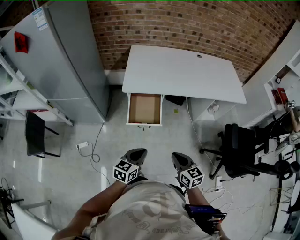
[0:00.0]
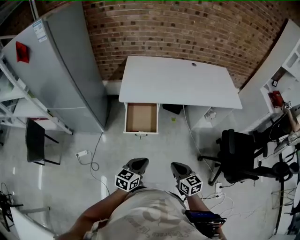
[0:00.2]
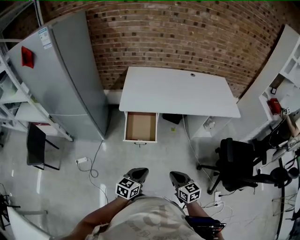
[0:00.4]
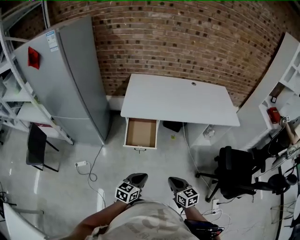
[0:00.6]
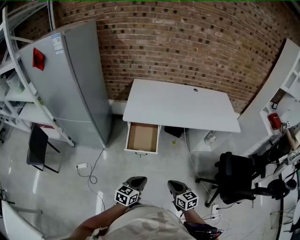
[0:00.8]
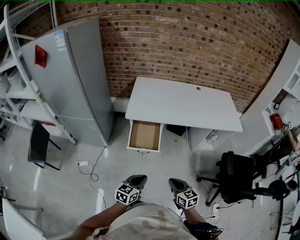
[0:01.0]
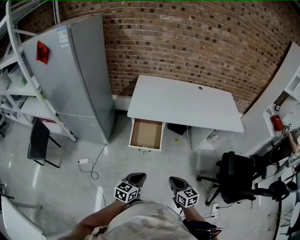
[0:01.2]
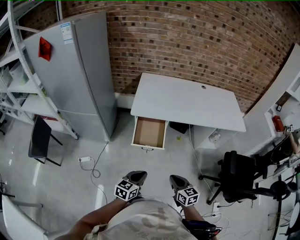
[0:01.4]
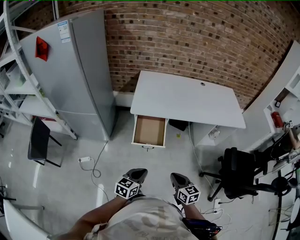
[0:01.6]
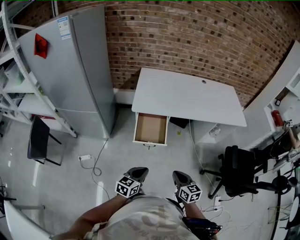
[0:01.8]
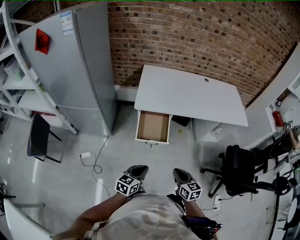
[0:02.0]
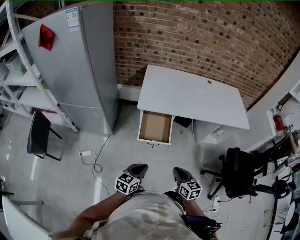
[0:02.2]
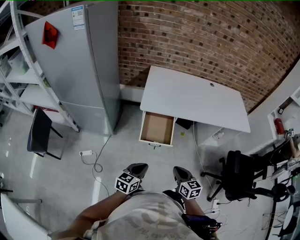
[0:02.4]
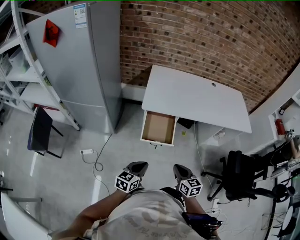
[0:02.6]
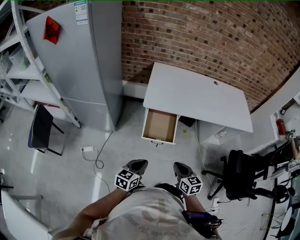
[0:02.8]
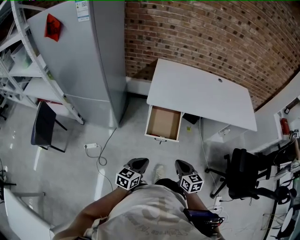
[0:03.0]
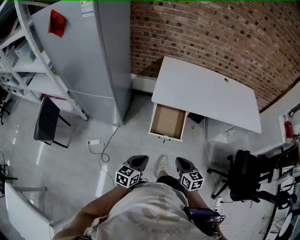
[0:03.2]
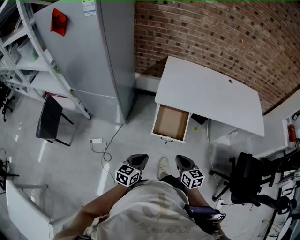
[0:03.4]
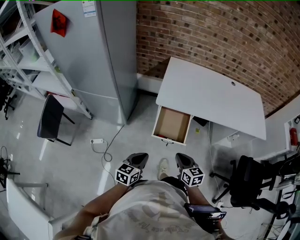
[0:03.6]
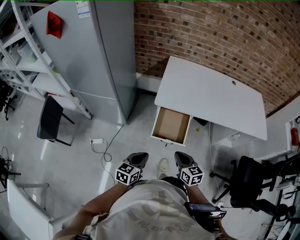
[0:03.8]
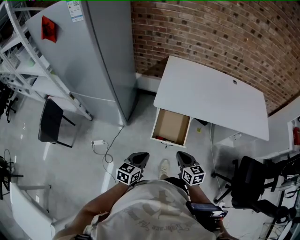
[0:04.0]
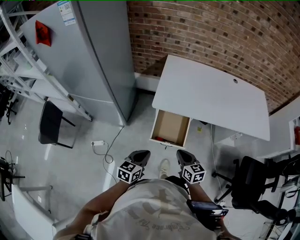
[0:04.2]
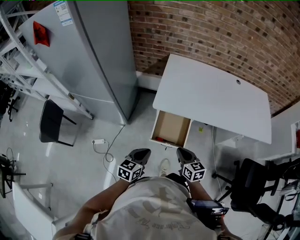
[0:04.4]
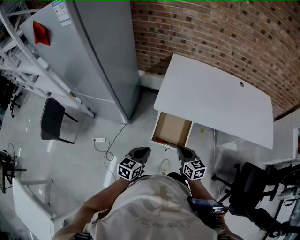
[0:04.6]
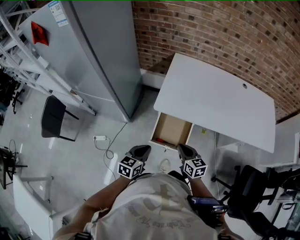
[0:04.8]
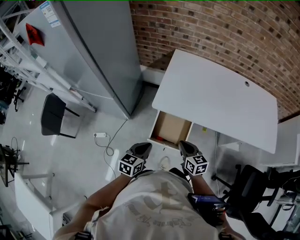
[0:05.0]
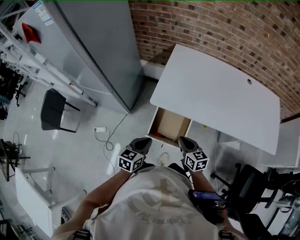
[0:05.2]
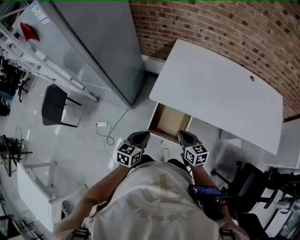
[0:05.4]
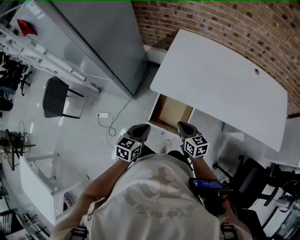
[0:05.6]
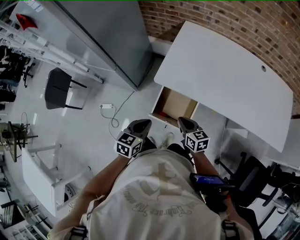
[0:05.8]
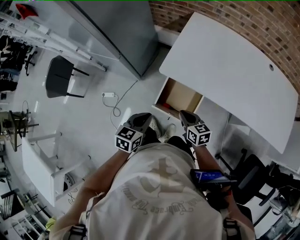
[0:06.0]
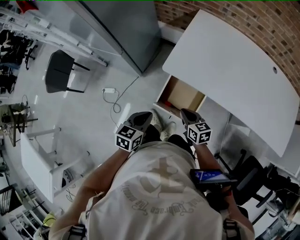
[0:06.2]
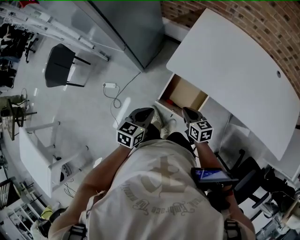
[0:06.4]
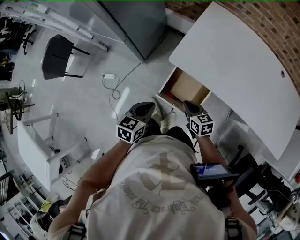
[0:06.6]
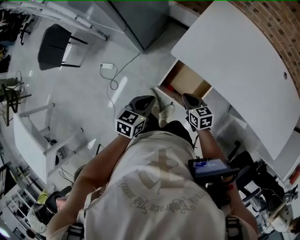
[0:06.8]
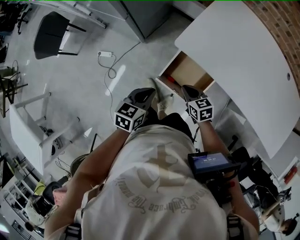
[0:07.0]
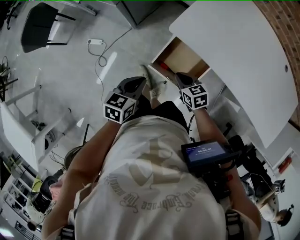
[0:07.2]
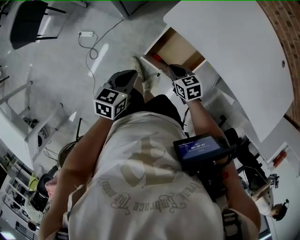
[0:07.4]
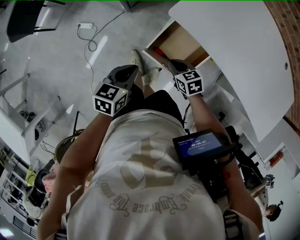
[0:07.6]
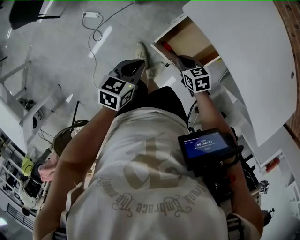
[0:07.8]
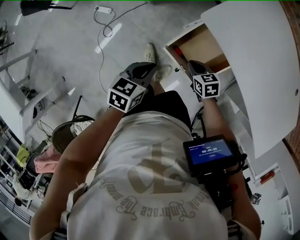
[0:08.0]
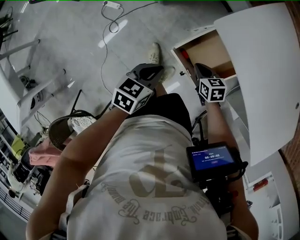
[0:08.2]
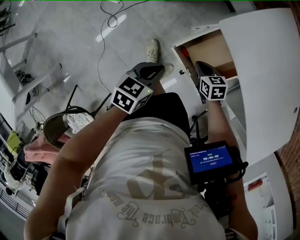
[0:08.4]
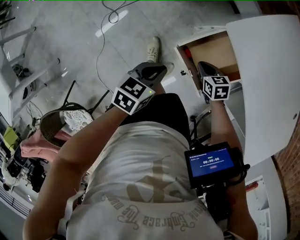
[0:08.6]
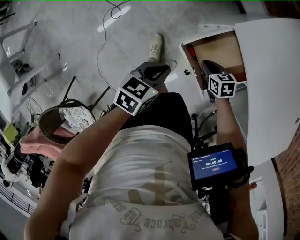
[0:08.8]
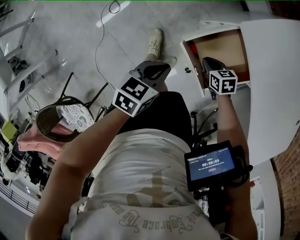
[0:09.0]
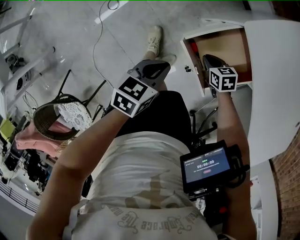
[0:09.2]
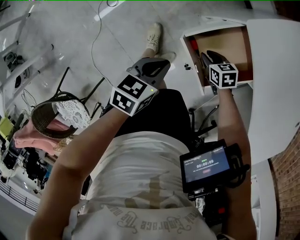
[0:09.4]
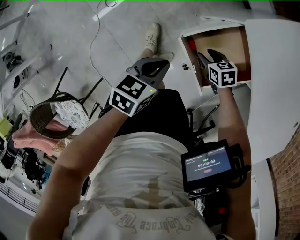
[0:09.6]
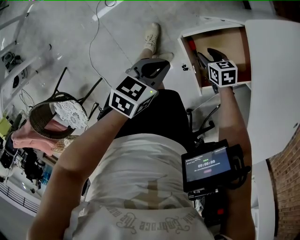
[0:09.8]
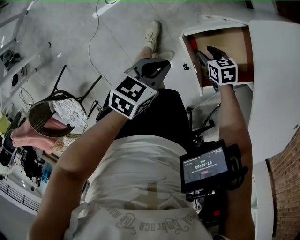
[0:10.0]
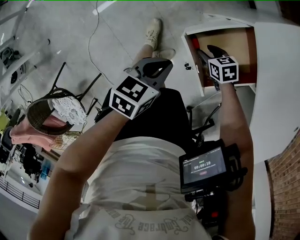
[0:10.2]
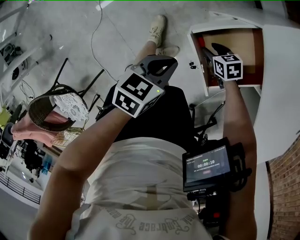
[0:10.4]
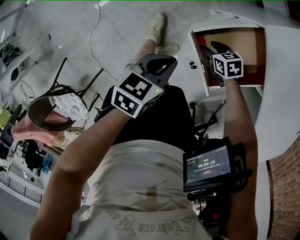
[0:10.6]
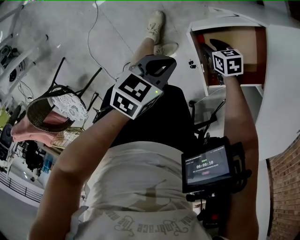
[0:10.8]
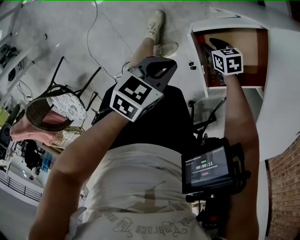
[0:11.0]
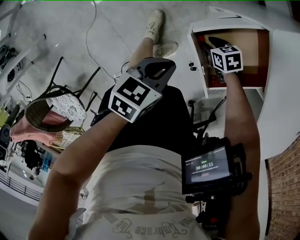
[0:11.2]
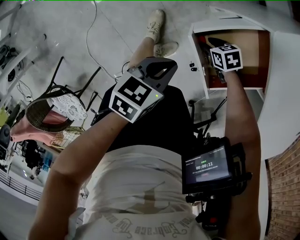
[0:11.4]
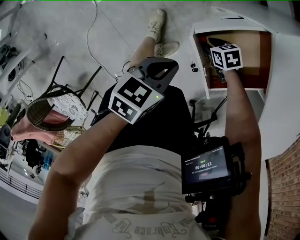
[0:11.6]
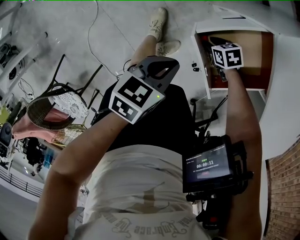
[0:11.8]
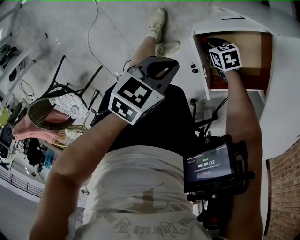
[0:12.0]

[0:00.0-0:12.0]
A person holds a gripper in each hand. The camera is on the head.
0:00.0 to 0:01.6: The left gripper moves roughly 5 cm to the right and comes back.
0:01.6 to 0:03.0: The right gripper shifts roughly 10 cm to the left and forward. The left gripper heads to the left, covering approximately 10 cm.
0:03.0 to 0:04.4: Both grippers move forward, approximately 15 cm.
0:04.4 to 0:06.0: The right gripper moves forward and downward, some 15 cm, while the left gripper heads forward, covering roughly 5 cm.
0:06.0 to 0:07.6: The two grippers go some 15 cm downward and to the left. The right gripper swivels roughly 30 degrees.
0:07.6 to 0:09.0: Both grippers move downward, about 10 cm.
0:09.0 to 0:10.4: The right gripper is displaced downward by roughly 5 cm, and opens.
0:10.4 to 0:12.0: The right gripper is displaced downward by some 5 cm, and closes up.

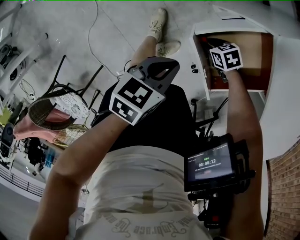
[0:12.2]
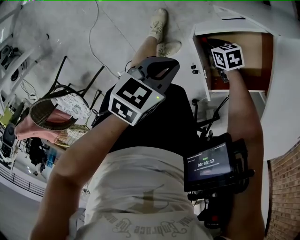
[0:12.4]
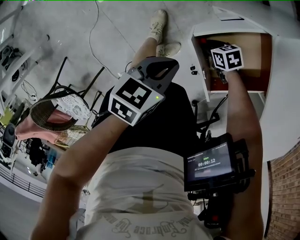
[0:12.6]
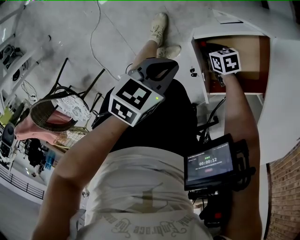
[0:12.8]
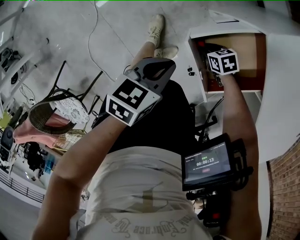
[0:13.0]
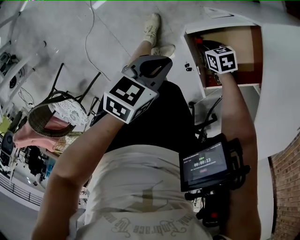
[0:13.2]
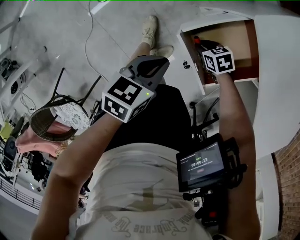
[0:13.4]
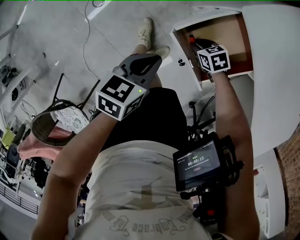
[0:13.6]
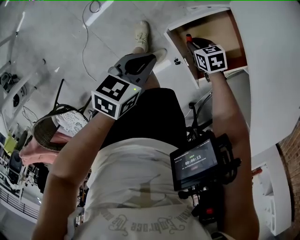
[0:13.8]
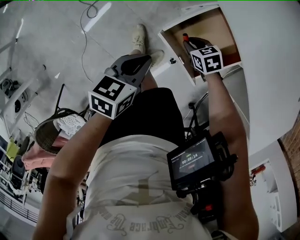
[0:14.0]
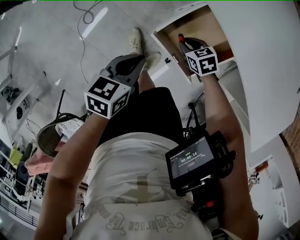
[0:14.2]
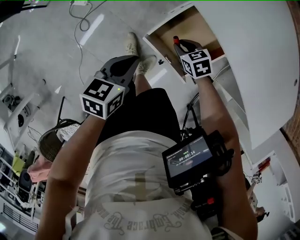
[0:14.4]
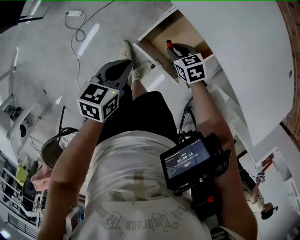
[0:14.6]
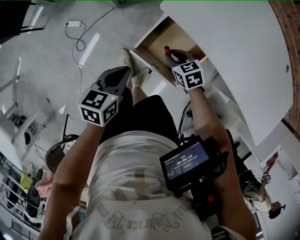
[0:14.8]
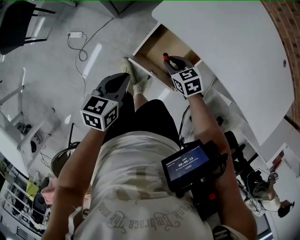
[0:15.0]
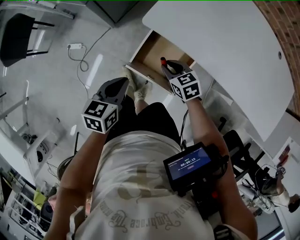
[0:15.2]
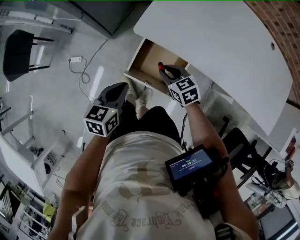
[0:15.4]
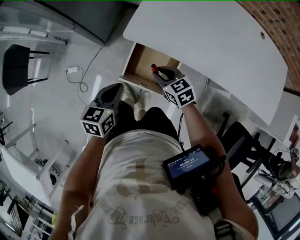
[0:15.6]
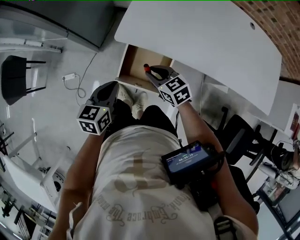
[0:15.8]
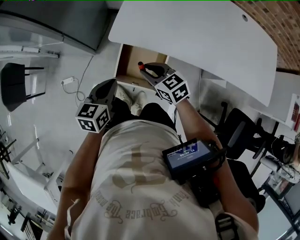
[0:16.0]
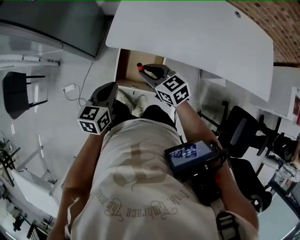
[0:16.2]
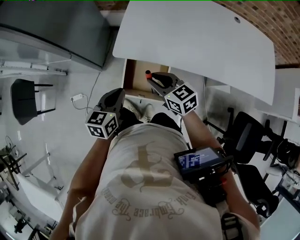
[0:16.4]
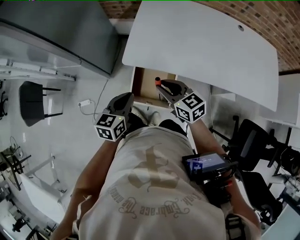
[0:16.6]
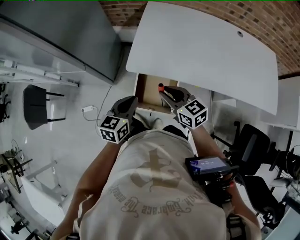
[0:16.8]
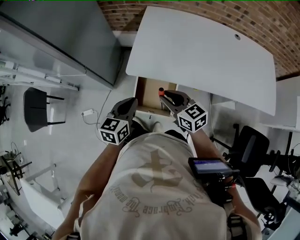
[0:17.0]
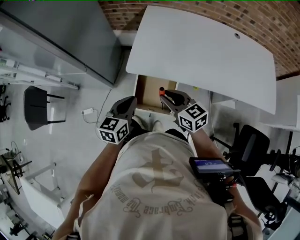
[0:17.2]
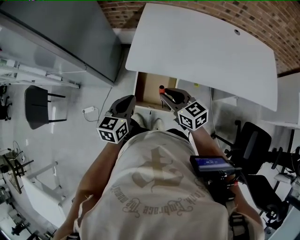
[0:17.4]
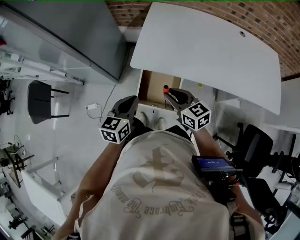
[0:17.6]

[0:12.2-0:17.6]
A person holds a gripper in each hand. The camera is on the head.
0:12.2 to 0:13.6: The grippers both shift upward by roughly 10 cm.
0:13.6 to 0:15.0: The left gripper is displaced upward by some 10 cm. Meanwhile the right gripper heads upward, covering some 15 cm, and swivels about 30 degrees.
0:15.0 to 0:16.2: The right gripper moves upward, some 20 cm, and rotates approximately 30 degrees. The left gripper travels upward and to the right by approximately 10 cm.
0:16.2 to 0:17.6: The right gripper heads upward and backward, covering some 10 cm. The left gripper goes some 5 cm upward.

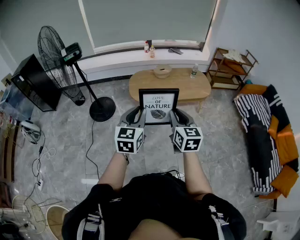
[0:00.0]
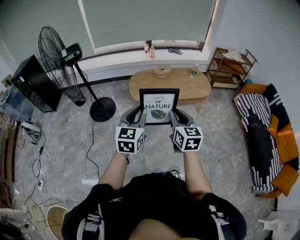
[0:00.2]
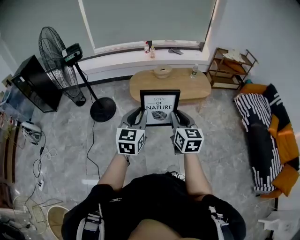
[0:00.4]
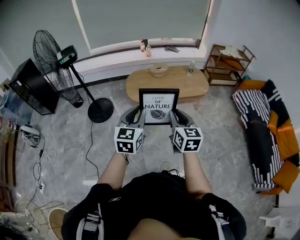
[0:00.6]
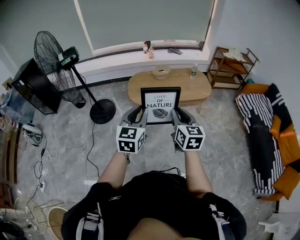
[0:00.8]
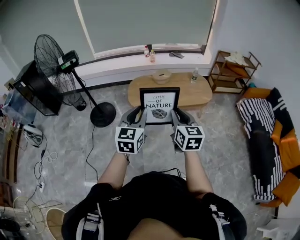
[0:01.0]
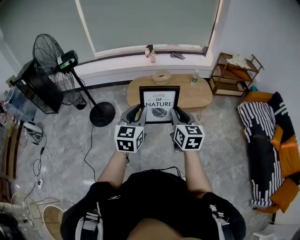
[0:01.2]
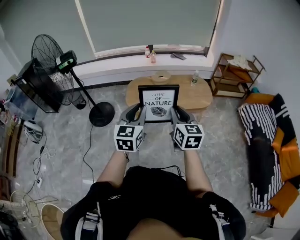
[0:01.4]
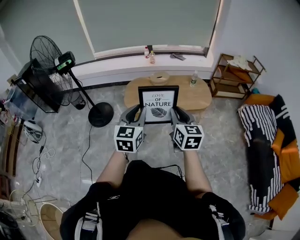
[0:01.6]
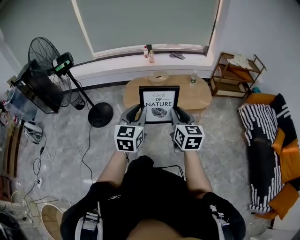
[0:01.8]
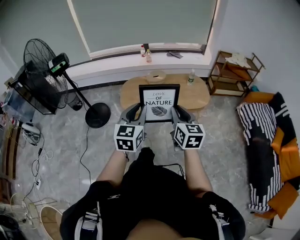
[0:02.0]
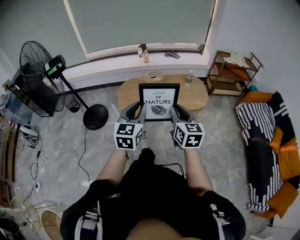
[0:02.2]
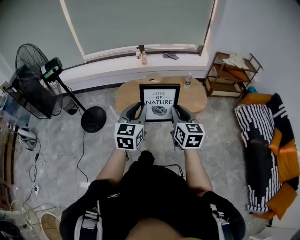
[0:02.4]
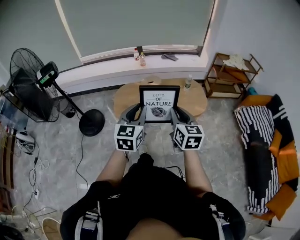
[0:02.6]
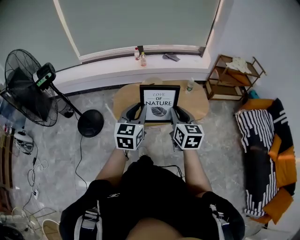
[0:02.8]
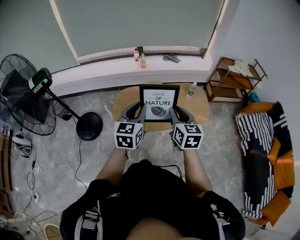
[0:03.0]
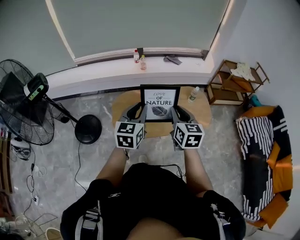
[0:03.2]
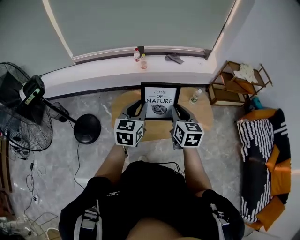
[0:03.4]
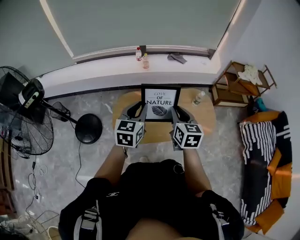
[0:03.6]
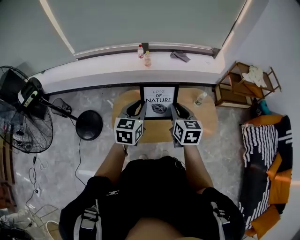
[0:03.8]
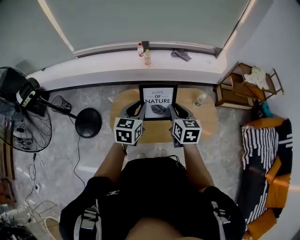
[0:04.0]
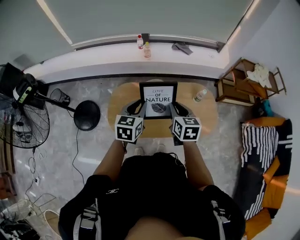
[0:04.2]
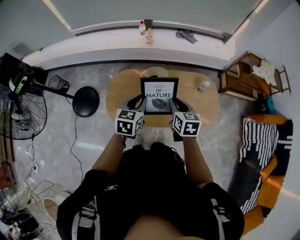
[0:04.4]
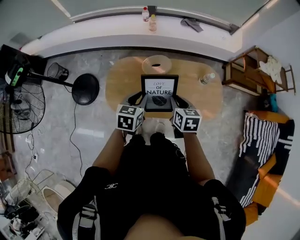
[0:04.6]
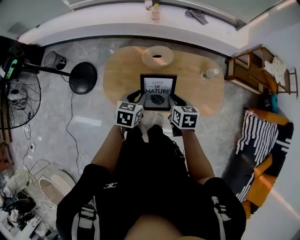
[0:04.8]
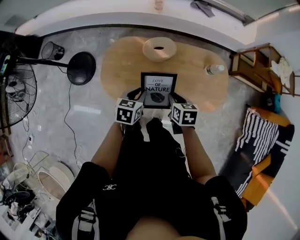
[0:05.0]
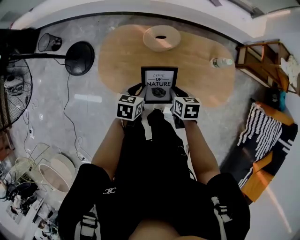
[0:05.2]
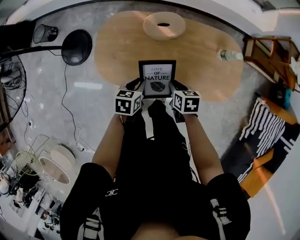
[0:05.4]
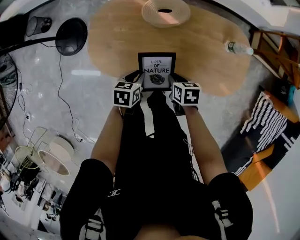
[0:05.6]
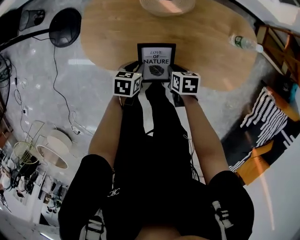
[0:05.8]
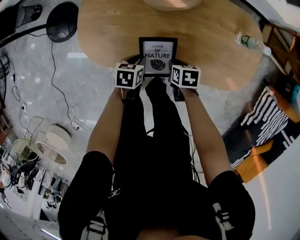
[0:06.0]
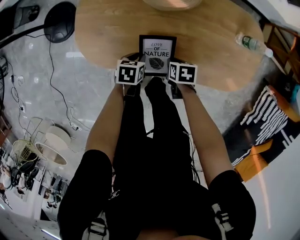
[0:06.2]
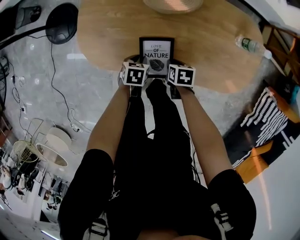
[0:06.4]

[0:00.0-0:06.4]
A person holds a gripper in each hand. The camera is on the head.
0:00.0 to 0:01.6: The grippers both shift to the right and forward by about 20 cm.
0:01.6 to 0:03.2: The pair of grippers is taken forward, roughly 40 cm.
0:03.2 to 0:04.8: The grippers both shift downward and forward by approximately 35 cm. The left gripper tips its fingers downward by approximately 30 degrees; the right gripper turns by some 40 degrees.
0:04.8 to 0:06.4: Both grippers move downward, some 40 cm. The left gripper rotates roughly 30 degrees; the right gripper swivels about 30 degrees.
